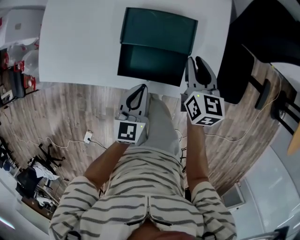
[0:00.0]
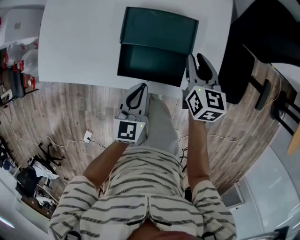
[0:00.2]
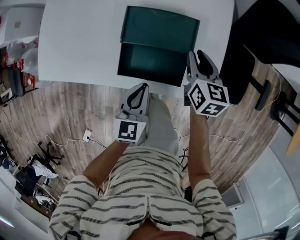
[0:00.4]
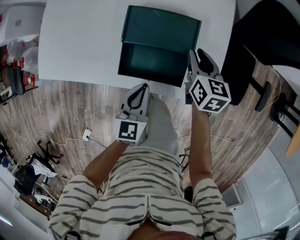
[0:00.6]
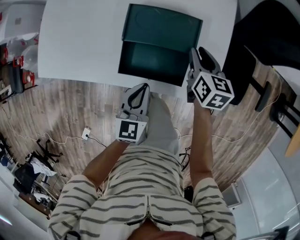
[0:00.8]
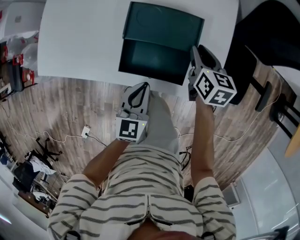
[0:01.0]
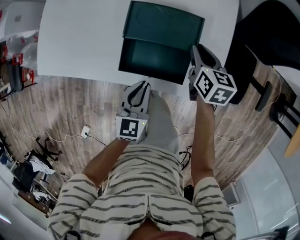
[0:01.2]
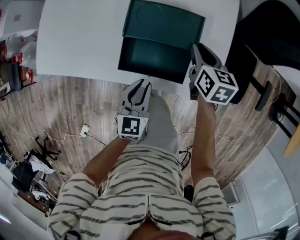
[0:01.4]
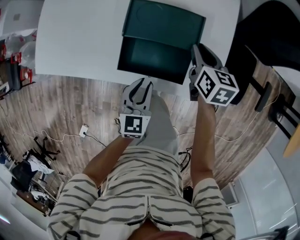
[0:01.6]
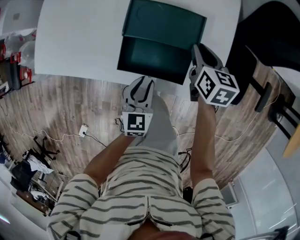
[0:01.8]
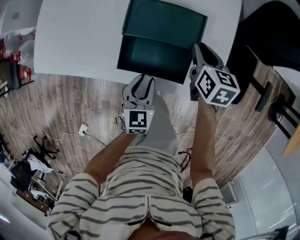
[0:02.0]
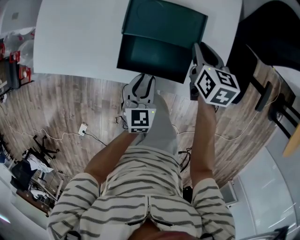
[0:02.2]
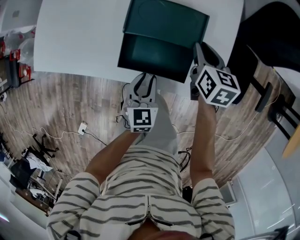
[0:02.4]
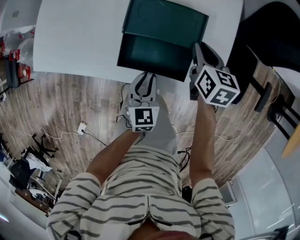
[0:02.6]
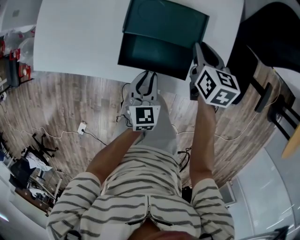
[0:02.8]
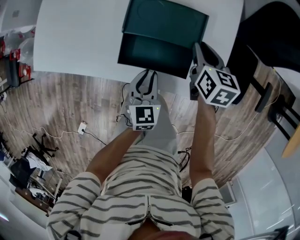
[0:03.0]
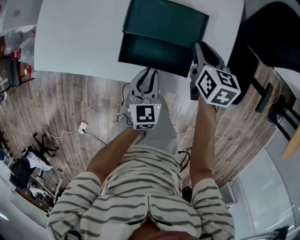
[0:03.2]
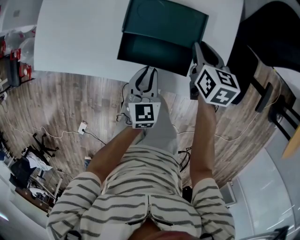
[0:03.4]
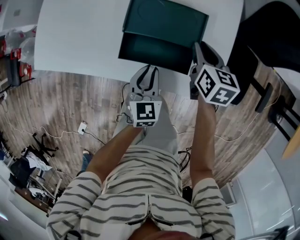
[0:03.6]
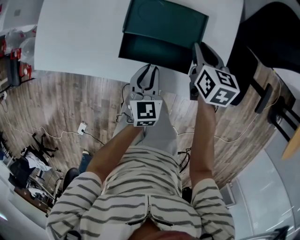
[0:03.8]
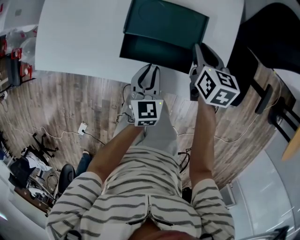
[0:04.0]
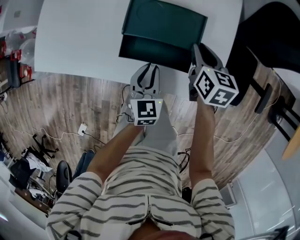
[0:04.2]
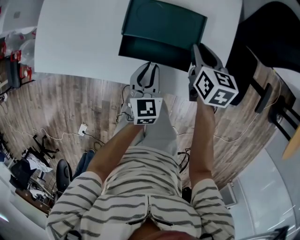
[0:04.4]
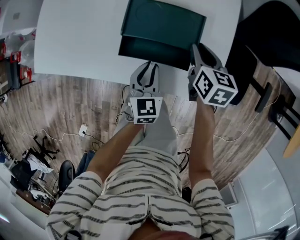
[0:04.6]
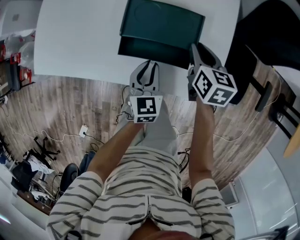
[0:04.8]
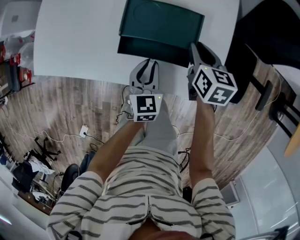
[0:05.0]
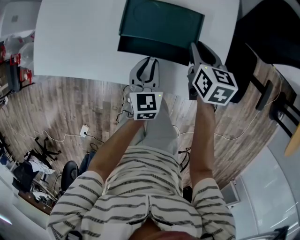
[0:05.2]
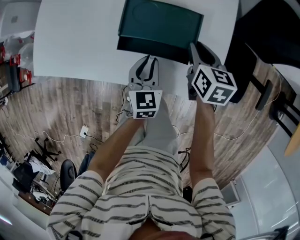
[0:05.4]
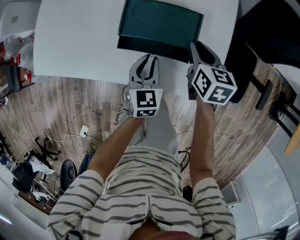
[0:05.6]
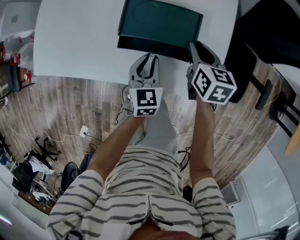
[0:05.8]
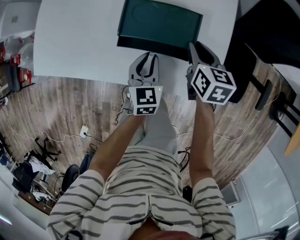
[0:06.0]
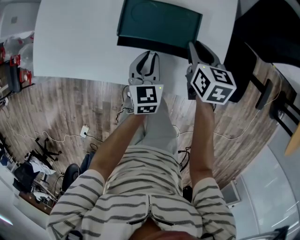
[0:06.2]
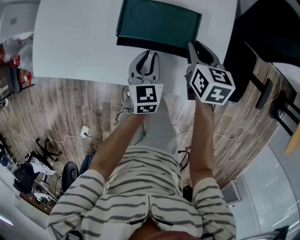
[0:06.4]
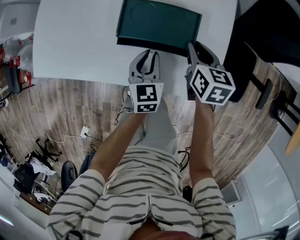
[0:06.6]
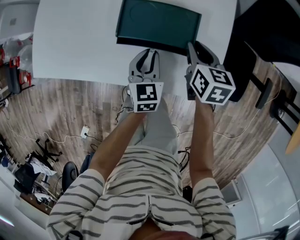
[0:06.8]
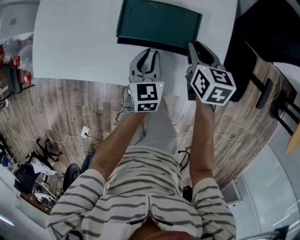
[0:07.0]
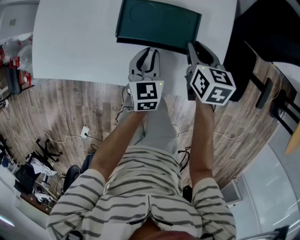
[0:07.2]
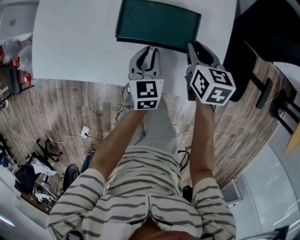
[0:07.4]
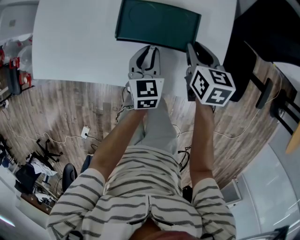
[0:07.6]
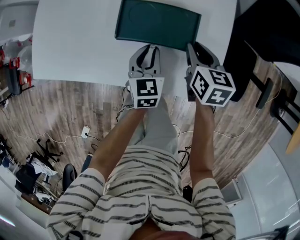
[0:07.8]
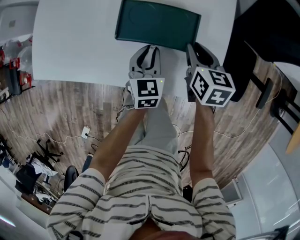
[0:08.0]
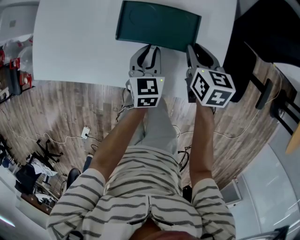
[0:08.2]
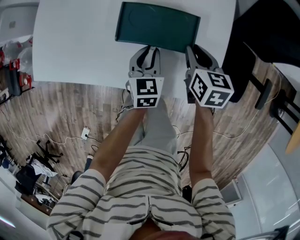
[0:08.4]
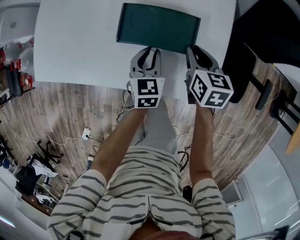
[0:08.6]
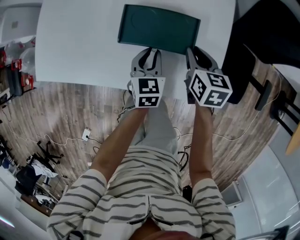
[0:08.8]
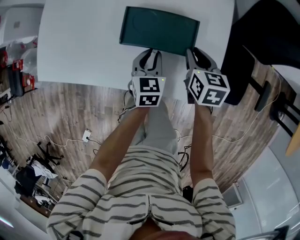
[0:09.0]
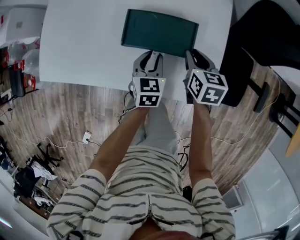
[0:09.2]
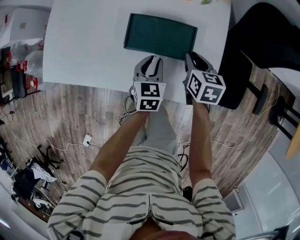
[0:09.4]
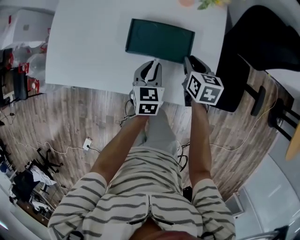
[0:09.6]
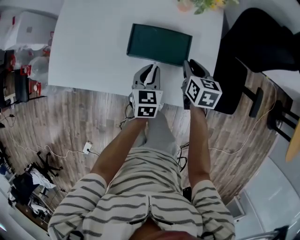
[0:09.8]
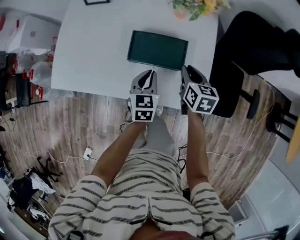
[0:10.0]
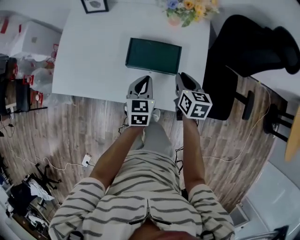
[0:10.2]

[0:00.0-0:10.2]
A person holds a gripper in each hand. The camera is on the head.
0:00.0 to 0:01.4: The right gripper moves about 5 cm.
0:01.4 to 0:03.0: The grippers make only small movements.
0:03.0 to 0:05.8: The grippers make only small movements.
0:05.8 to 0:08.8: There are only small adjustments of the grippers.
0:08.8 to 0:10.2: Both grippers move upward, approximately 10 cm.

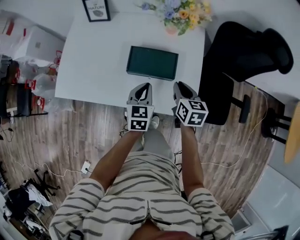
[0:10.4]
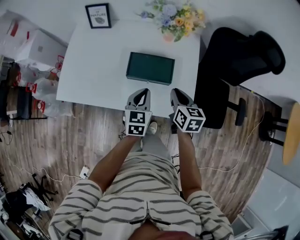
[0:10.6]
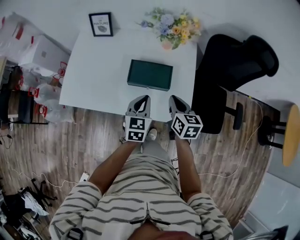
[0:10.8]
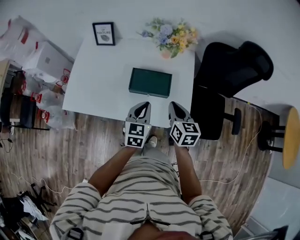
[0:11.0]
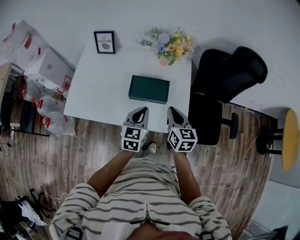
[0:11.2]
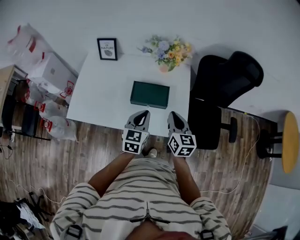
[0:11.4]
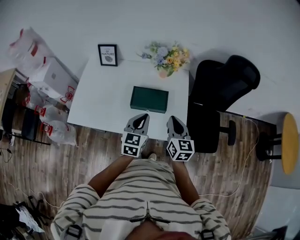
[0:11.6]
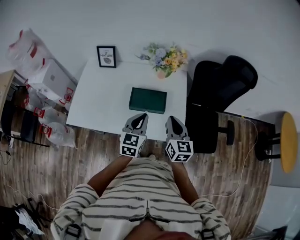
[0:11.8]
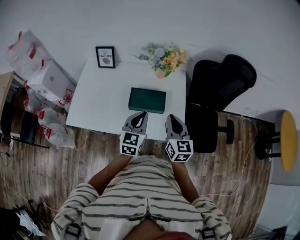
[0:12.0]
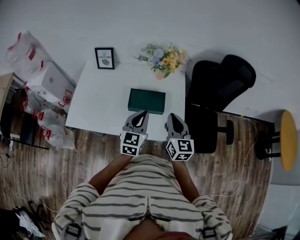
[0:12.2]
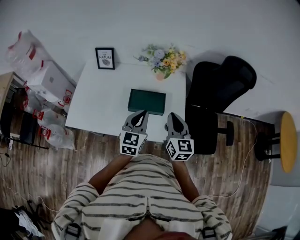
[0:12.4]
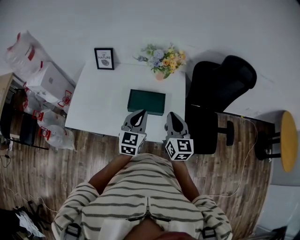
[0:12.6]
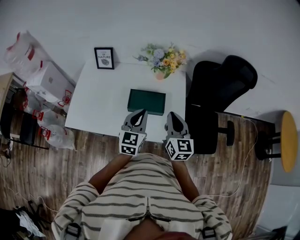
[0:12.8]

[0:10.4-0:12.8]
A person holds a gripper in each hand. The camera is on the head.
0:10.4 to 0:11.6: The two grippers go roughly 15 cm upward and backward. The right gripper changes its angle by roughly 20 degrees.
0:11.6 to 0:12.8: The grippers make only small movements.

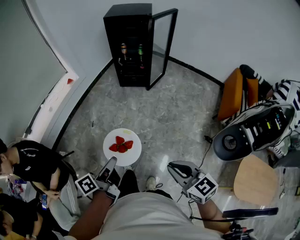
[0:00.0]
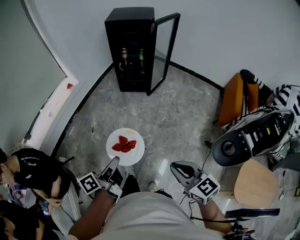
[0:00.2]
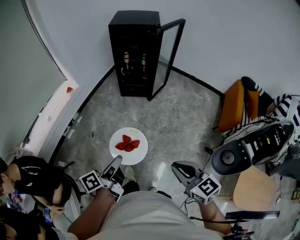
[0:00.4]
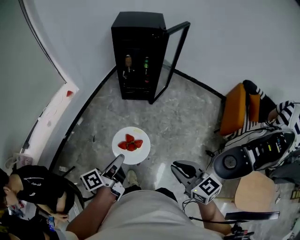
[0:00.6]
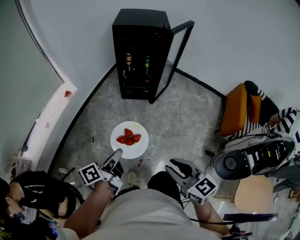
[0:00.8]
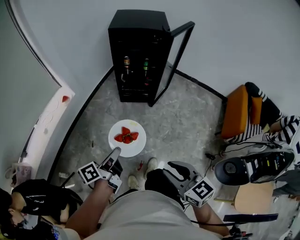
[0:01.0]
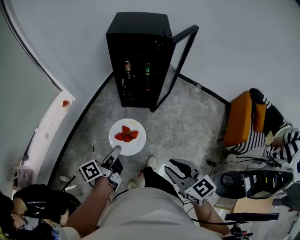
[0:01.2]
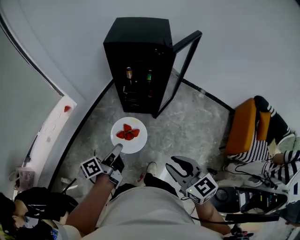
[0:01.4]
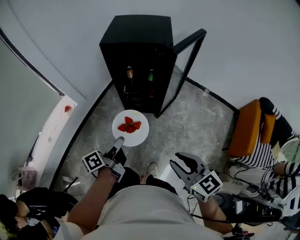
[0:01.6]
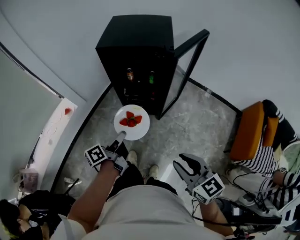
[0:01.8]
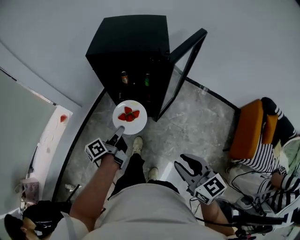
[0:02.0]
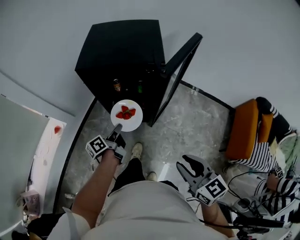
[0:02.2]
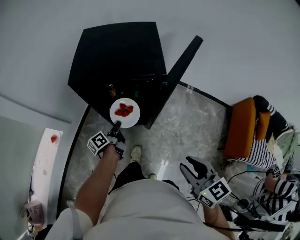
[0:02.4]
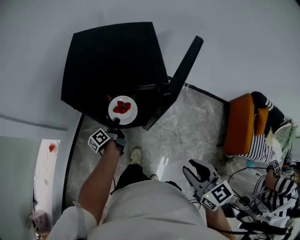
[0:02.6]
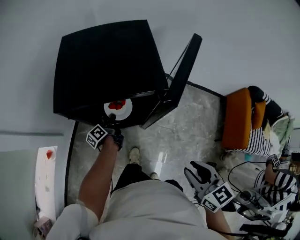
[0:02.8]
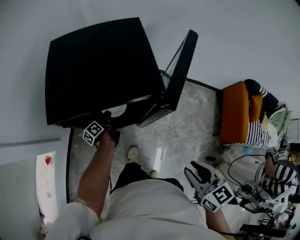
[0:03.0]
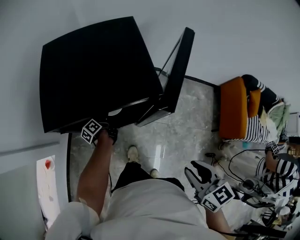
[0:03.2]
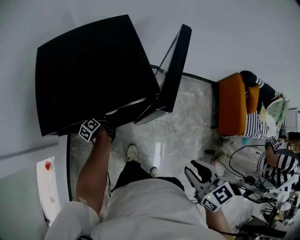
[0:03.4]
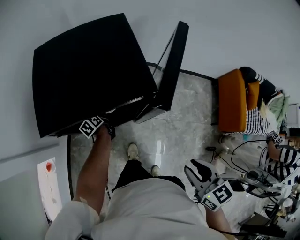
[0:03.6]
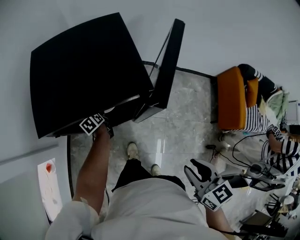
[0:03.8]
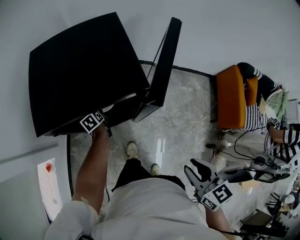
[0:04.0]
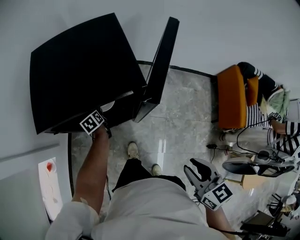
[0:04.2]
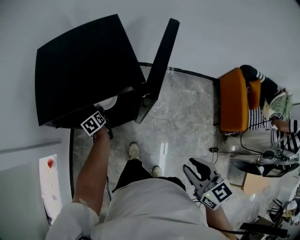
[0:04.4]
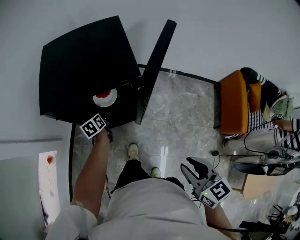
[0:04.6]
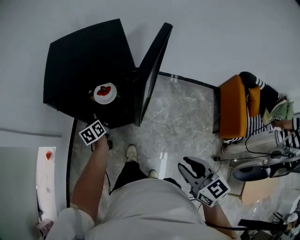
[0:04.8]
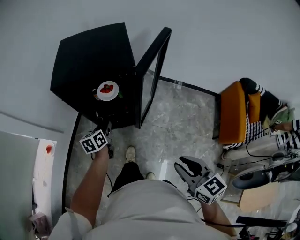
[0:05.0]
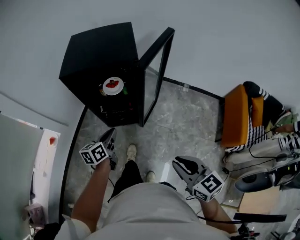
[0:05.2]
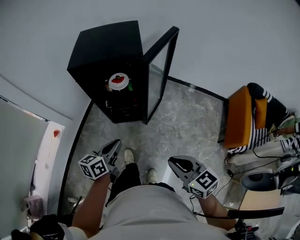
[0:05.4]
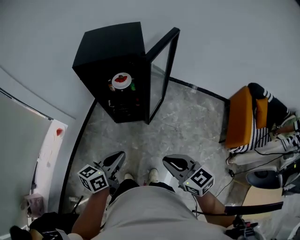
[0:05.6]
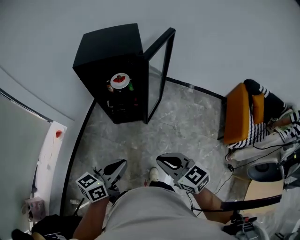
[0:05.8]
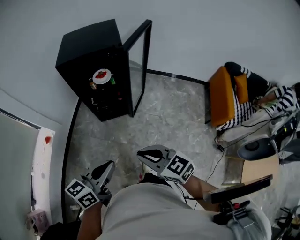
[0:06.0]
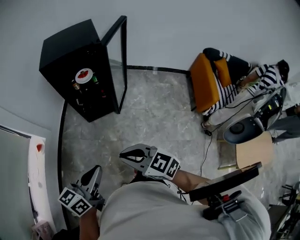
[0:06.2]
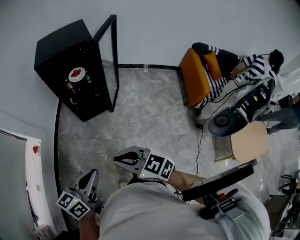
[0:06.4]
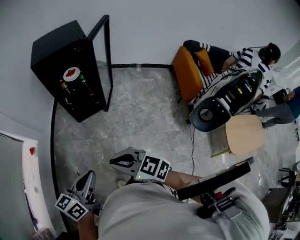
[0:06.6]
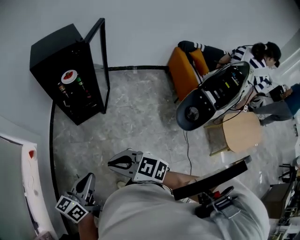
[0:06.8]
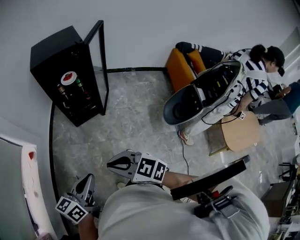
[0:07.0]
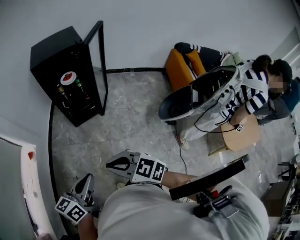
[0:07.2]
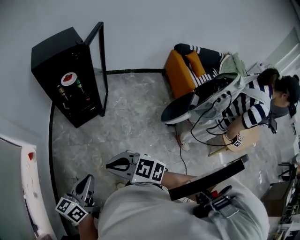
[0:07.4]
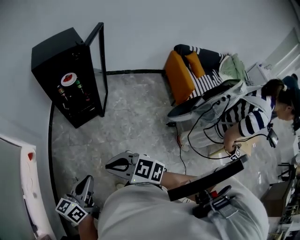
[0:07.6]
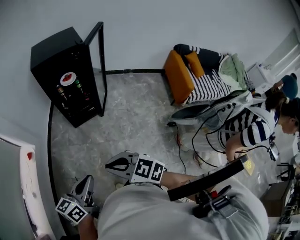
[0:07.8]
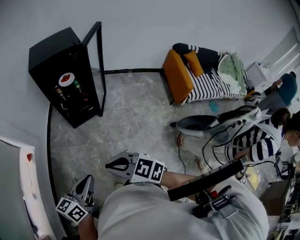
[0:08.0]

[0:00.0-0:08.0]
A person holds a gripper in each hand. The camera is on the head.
0:00.0 to 0:01.6: Both grippers are carried forward, some 50 cm.
0:01.6 to 0:03.2: The right gripper shifts about 25 cm forward and to the right, and turns by about 30 degrees, while the left gripper travels forward and downward by some 50 cm, and swivels roughly 20 degrees.
0:03.2 to 0:04.8: The right gripper heads backward and downward, covering approximately 15 cm, and goes to the left and returns, some 15 cm each way; the left gripper goes about 15 cm backward, swivels some 40 degrees, and opens up.
0:04.8 to 0:06.4: The right gripper shifts about 35 cm backward and to the left, turns by roughly 30 degrees, and closes, while the left gripper is displaced backward and upward by some 60 cm, swivels about 40 degrees, and closes.
0:06.4 to 0:08.0: The left gripper shifts approximately 5 cm backward, while the right gripper heads backward and to the left, covering approximately 10 cm.

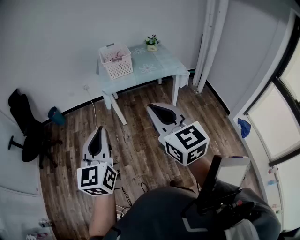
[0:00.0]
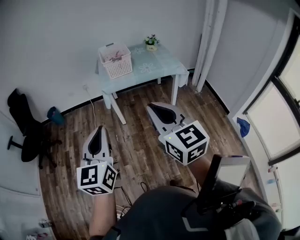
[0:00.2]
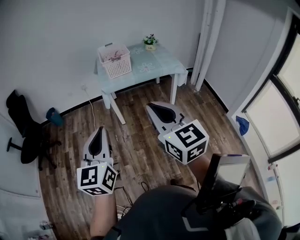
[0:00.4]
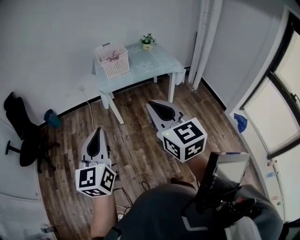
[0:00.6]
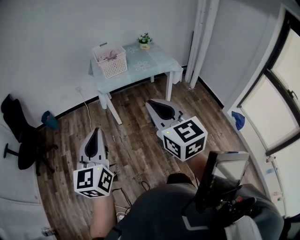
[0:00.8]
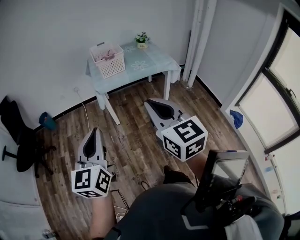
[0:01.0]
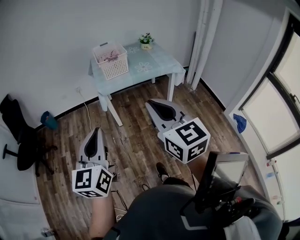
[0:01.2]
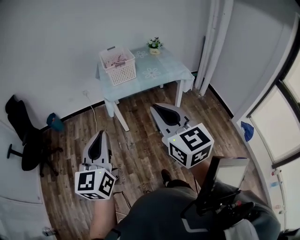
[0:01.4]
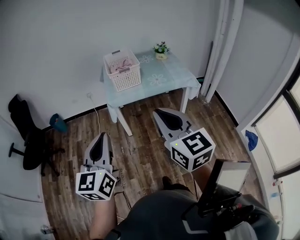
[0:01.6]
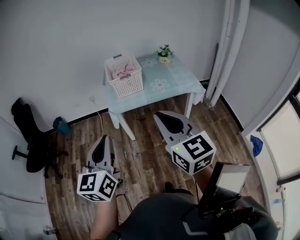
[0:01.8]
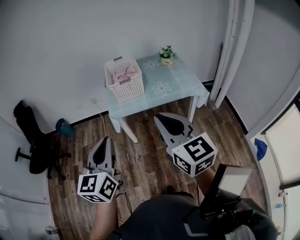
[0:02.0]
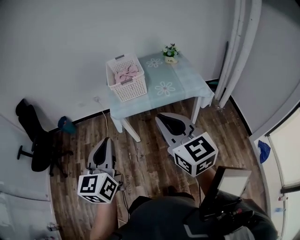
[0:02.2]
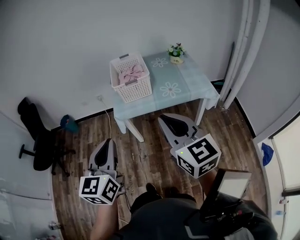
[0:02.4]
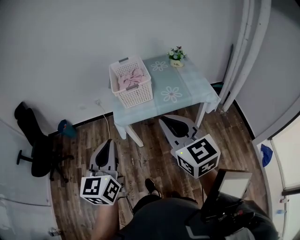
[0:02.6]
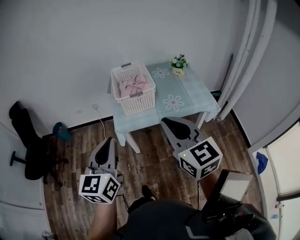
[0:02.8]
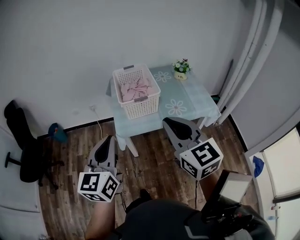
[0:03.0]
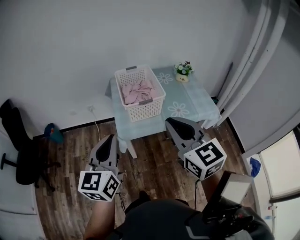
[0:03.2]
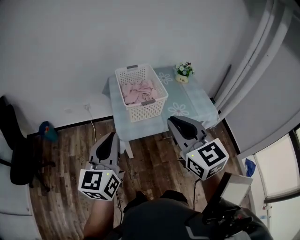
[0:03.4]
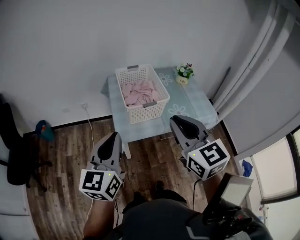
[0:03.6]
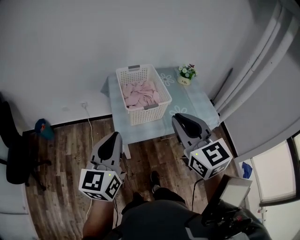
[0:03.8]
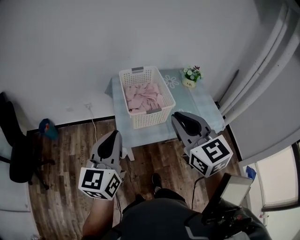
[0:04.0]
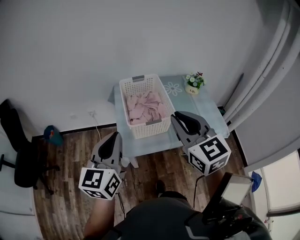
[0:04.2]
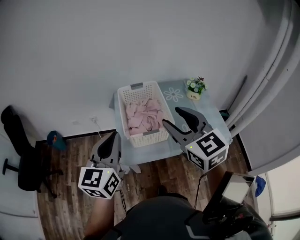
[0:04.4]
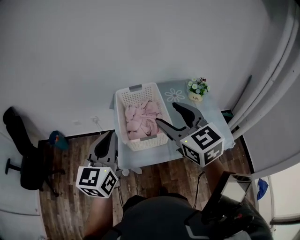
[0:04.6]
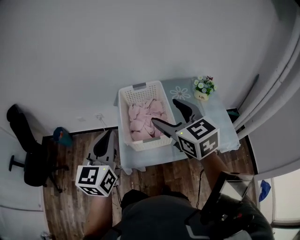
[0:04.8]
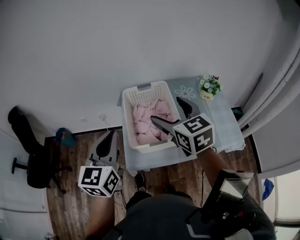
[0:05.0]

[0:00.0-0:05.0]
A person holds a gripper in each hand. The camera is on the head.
0:00.0 to 0:01.6: The grippers both shift forward by about 15 cm.
0:01.6 to 0:03.4: The two grippers go roughly 35 cm forward.
0:03.4 to 0:05.0: The grippers both shift forward by some 25 cm. The right gripper opens its fingers.
